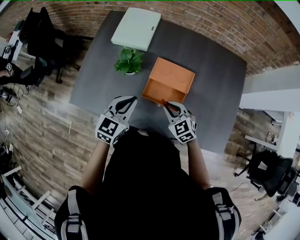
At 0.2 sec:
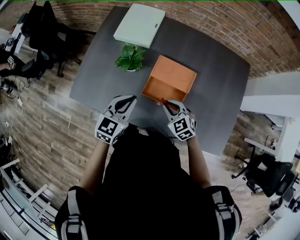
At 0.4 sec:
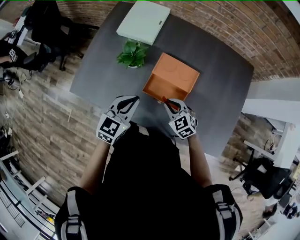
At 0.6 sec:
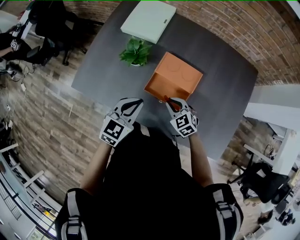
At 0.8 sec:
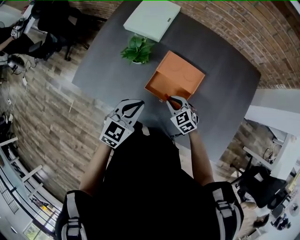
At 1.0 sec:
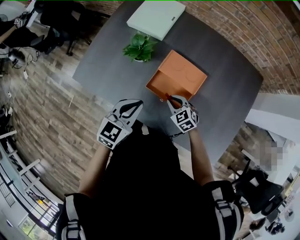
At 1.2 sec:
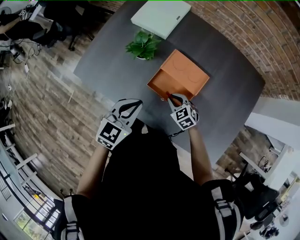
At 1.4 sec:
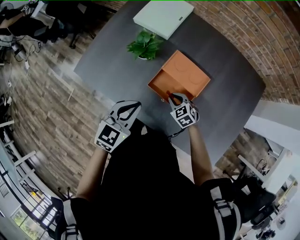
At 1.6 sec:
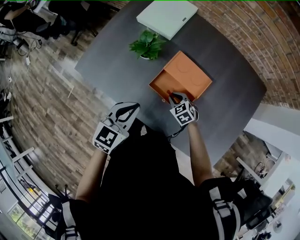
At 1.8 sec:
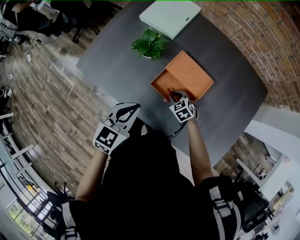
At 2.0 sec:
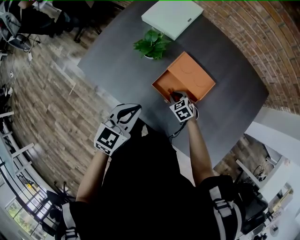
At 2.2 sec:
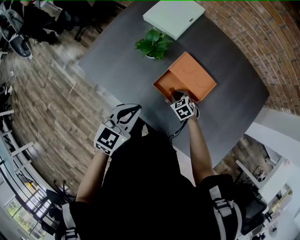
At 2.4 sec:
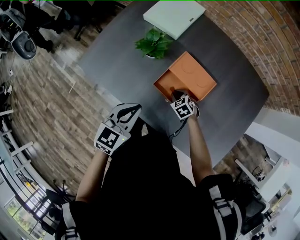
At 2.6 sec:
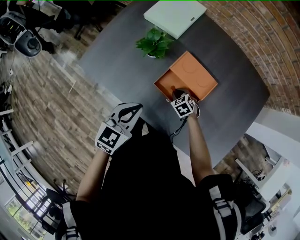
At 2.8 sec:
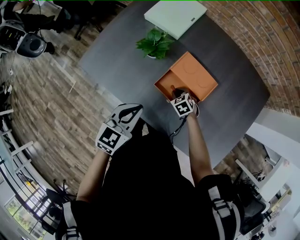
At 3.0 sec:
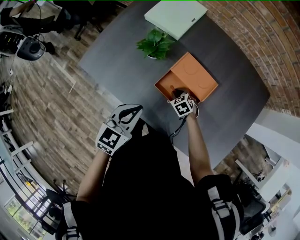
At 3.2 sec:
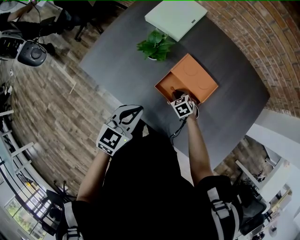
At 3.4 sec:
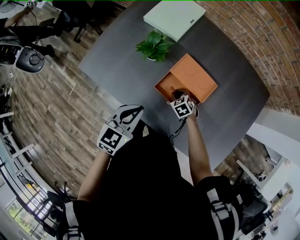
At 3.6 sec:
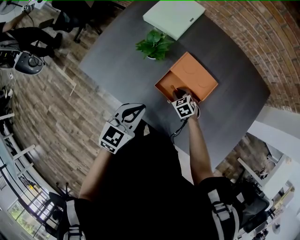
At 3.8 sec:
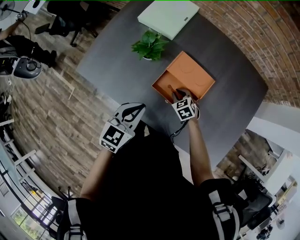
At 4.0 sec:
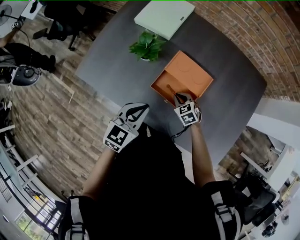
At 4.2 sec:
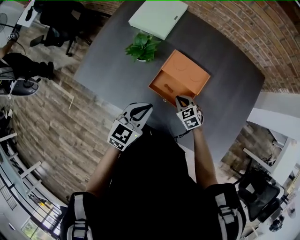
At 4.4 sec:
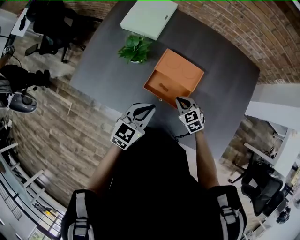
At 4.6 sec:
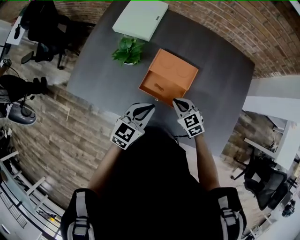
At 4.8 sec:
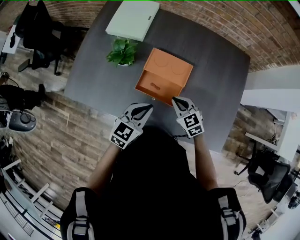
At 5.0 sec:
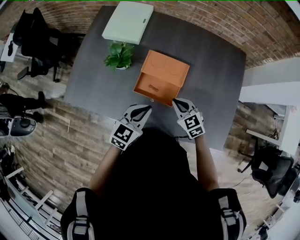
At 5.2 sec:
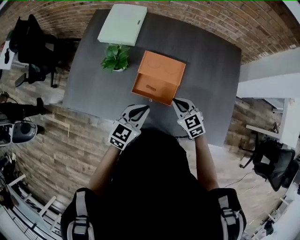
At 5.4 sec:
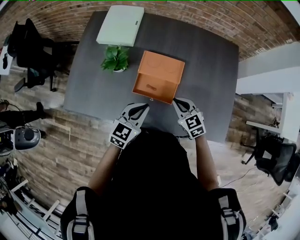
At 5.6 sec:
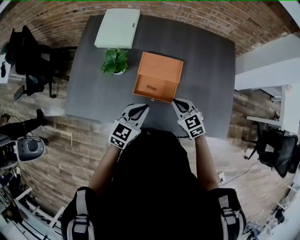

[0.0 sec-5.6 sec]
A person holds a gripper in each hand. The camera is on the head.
0.0 sec to 1.4 sec: The left gripper shifts by roughly 5 cm. Meanwhile the right gripper is displaced downward by some 15 cm, and swivels approximately 20 degrees.
1.4 sec to 2.8 sec: The right gripper heads downward, covering about 5 cm.
2.8 sec to 4.2 sec: The left gripper changes place by about 5 cm. The right gripper travels upward by some 5 cm.
4.2 sec to 5.6 sec: The right gripper shifts some 15 cm upward and backward, and swivels roughly 20 degrees.

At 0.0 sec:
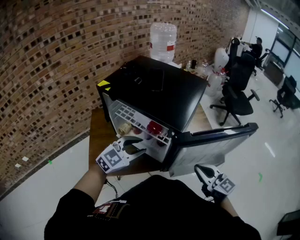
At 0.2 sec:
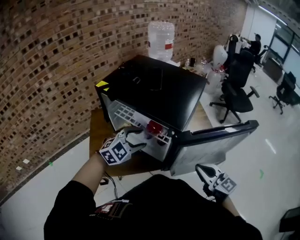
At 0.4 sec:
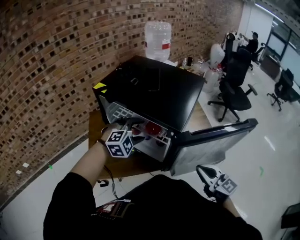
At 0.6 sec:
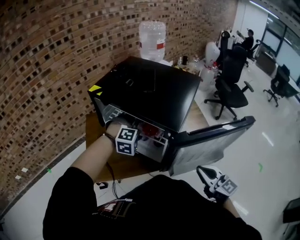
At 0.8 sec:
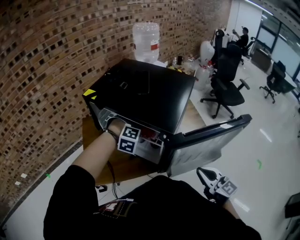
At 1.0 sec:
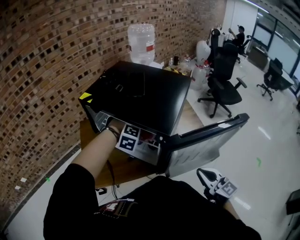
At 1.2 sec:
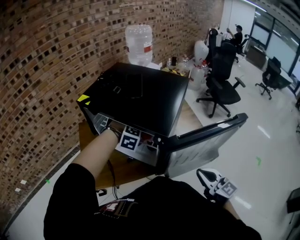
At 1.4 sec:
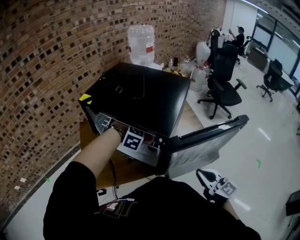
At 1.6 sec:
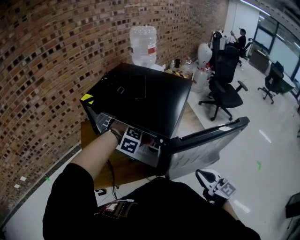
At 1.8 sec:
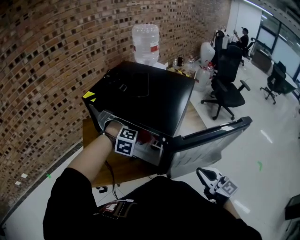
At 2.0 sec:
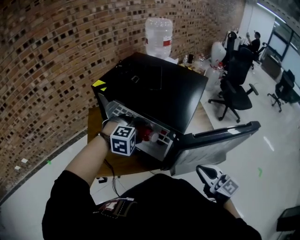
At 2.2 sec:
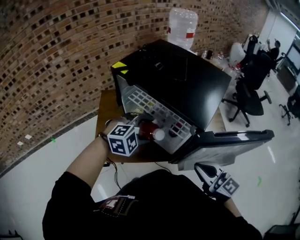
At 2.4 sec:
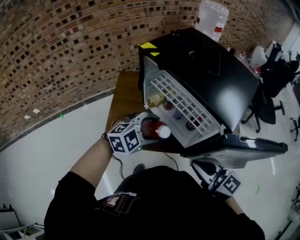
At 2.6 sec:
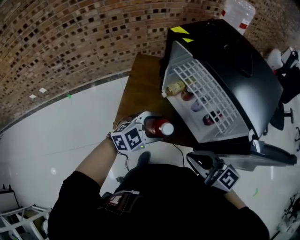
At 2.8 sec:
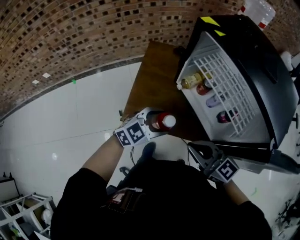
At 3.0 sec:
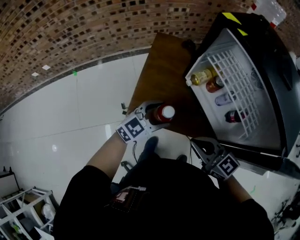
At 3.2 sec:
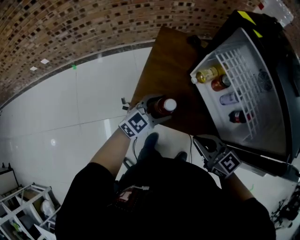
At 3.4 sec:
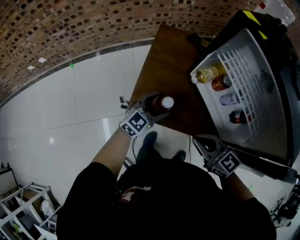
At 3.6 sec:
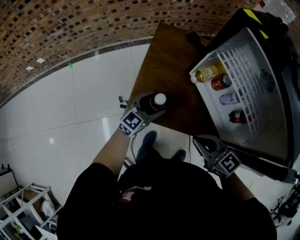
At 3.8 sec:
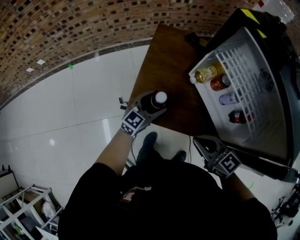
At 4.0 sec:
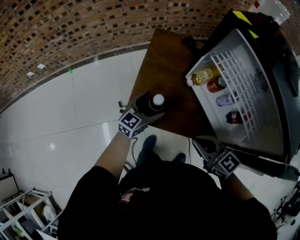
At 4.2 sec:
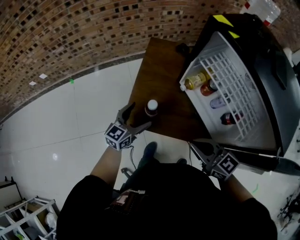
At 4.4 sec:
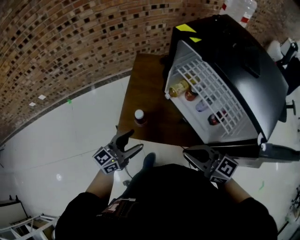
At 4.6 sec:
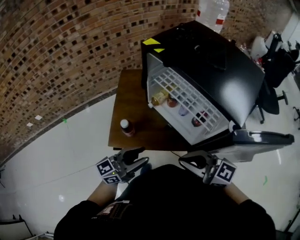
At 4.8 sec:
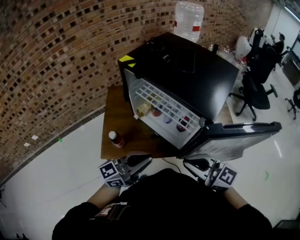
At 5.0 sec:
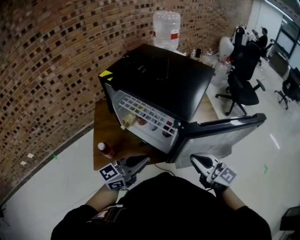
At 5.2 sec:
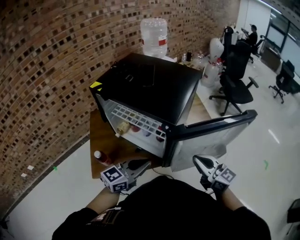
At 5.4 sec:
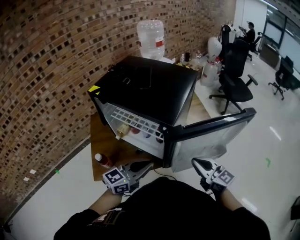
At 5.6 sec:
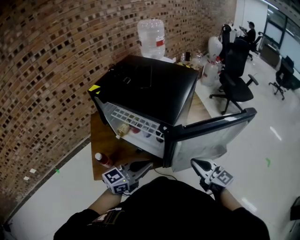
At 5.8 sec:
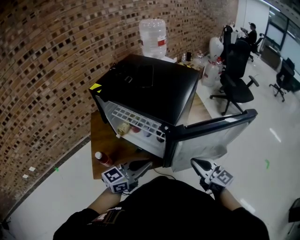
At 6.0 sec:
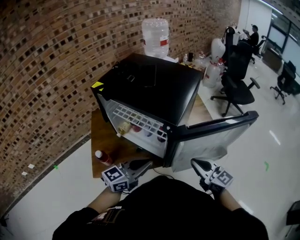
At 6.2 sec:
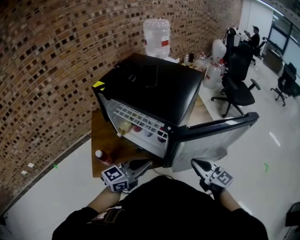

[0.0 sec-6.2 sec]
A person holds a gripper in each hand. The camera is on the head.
0.0 sec to 1.6 sec: The left gripper shifts about 15 cm forward and downward, tilts its fingers approximately 50 degrees downward, and opens up.
1.6 sec to 3.2 sec: Both grippers move to the left and downward, roughly 40 cm. The right gripper rotates about 50 degrees, while the left gripper rotates around the line of its fingers by approximately 80 degrees, counterclockwise from behind.
3.2 sec to 4.6 sec: The right gripper shifts about 25 cm upward, to the right and backward. Meanwhile the left gripper goes roughly 25 cm upward, backward and to the right, and rotates about 40 degrees.
4.6 sec to 6.2 sec: The left gripper moves about 20 cm, and closes its fingers; the right gripper changes place by approximately 25 cm, and swivels roughly 40 degrees.

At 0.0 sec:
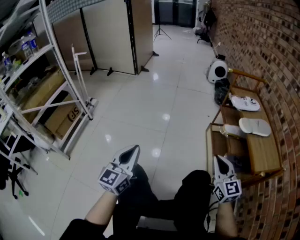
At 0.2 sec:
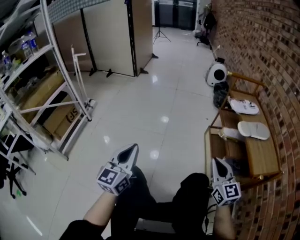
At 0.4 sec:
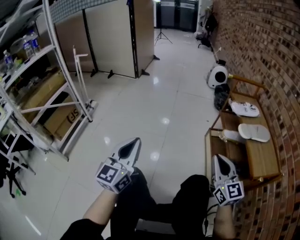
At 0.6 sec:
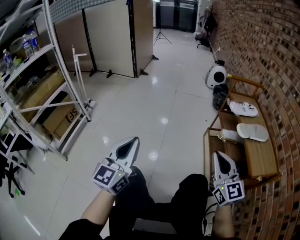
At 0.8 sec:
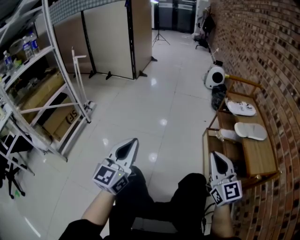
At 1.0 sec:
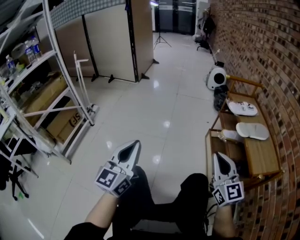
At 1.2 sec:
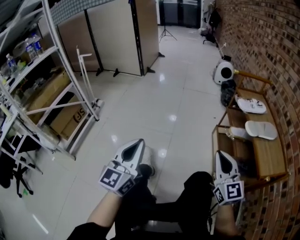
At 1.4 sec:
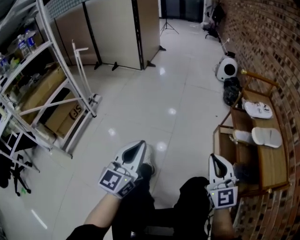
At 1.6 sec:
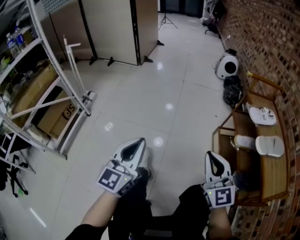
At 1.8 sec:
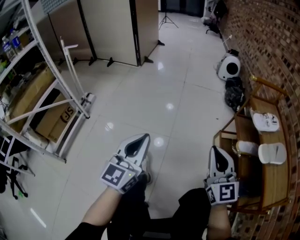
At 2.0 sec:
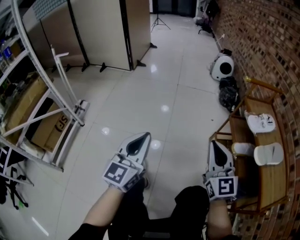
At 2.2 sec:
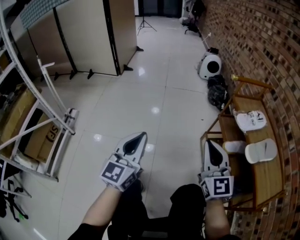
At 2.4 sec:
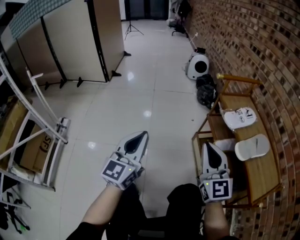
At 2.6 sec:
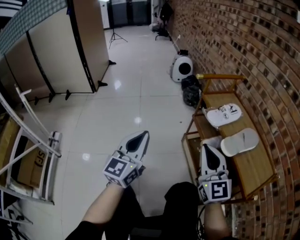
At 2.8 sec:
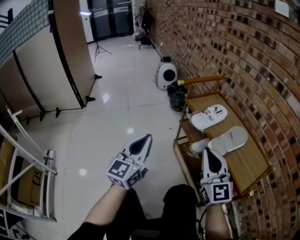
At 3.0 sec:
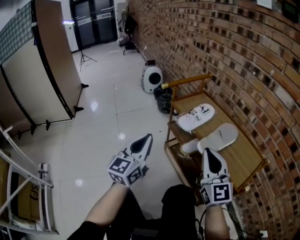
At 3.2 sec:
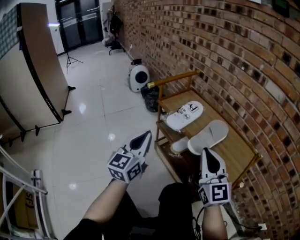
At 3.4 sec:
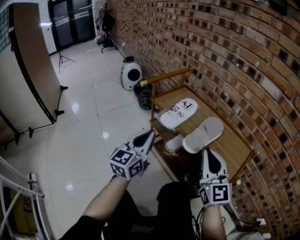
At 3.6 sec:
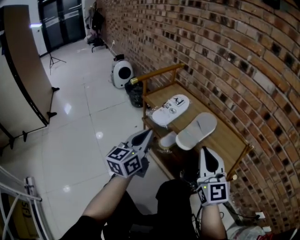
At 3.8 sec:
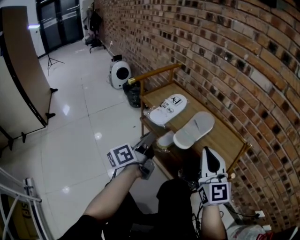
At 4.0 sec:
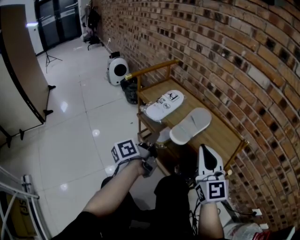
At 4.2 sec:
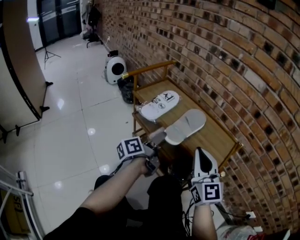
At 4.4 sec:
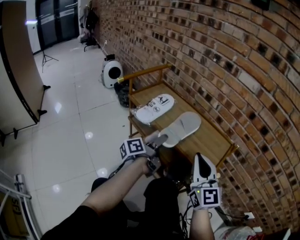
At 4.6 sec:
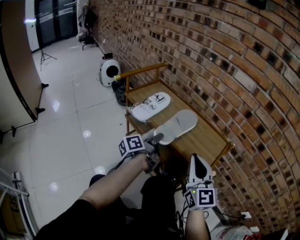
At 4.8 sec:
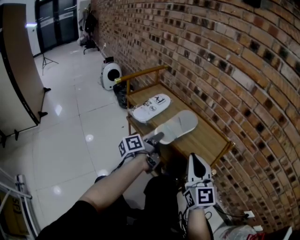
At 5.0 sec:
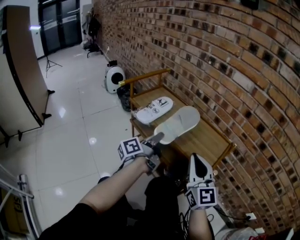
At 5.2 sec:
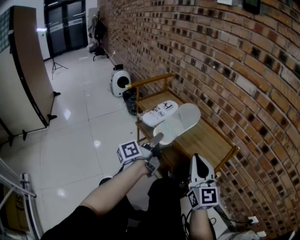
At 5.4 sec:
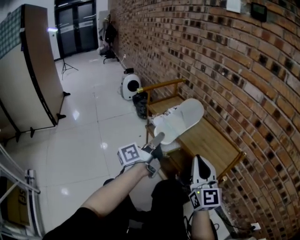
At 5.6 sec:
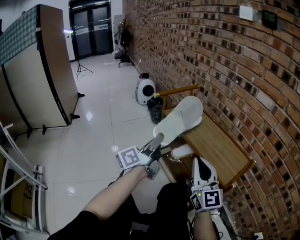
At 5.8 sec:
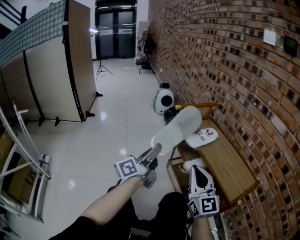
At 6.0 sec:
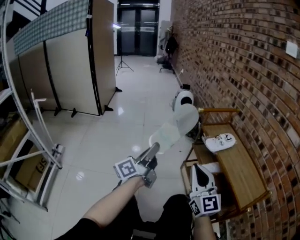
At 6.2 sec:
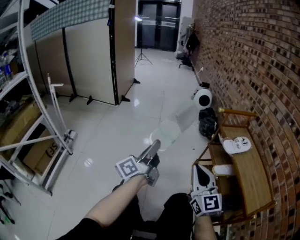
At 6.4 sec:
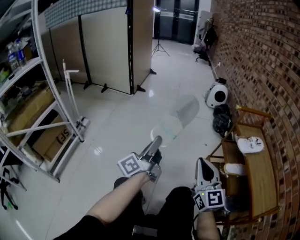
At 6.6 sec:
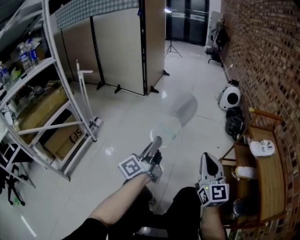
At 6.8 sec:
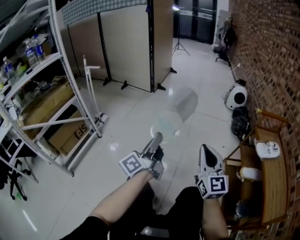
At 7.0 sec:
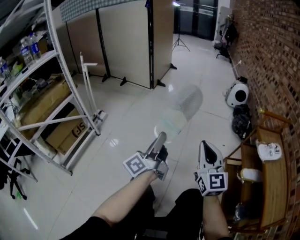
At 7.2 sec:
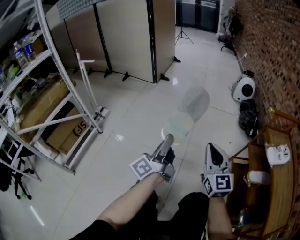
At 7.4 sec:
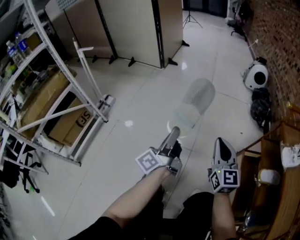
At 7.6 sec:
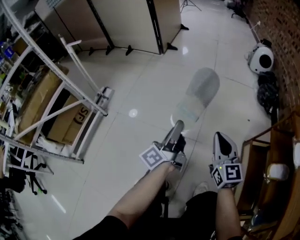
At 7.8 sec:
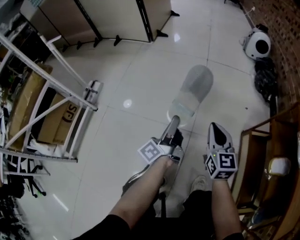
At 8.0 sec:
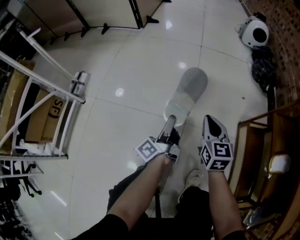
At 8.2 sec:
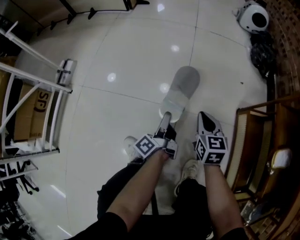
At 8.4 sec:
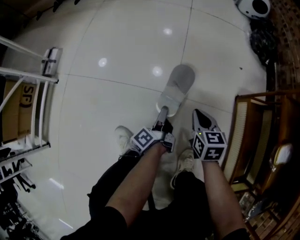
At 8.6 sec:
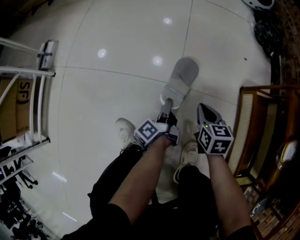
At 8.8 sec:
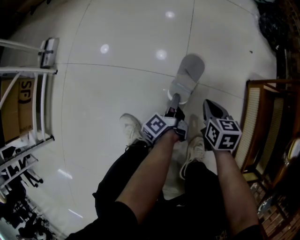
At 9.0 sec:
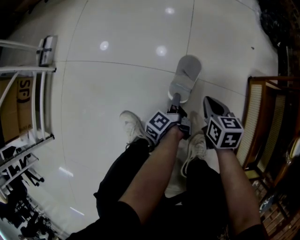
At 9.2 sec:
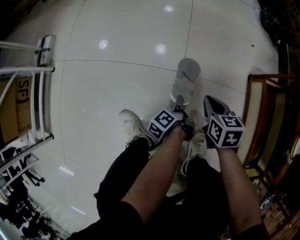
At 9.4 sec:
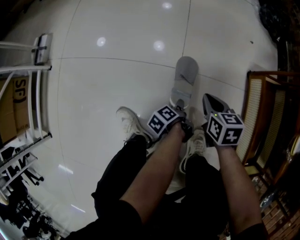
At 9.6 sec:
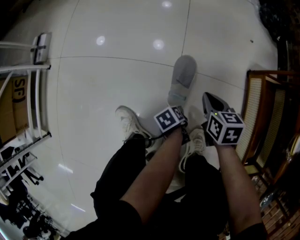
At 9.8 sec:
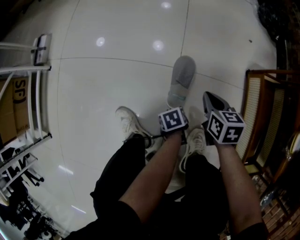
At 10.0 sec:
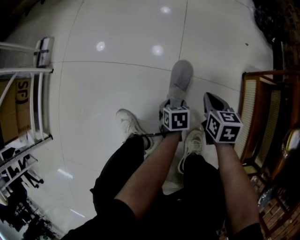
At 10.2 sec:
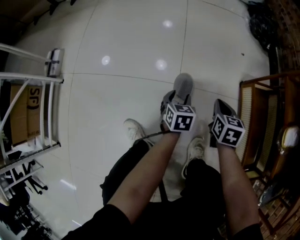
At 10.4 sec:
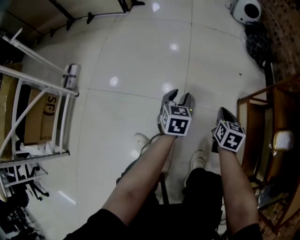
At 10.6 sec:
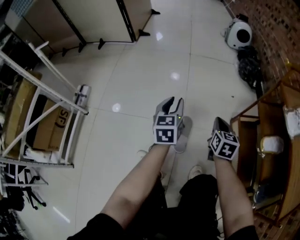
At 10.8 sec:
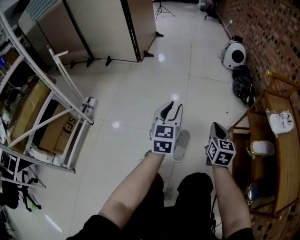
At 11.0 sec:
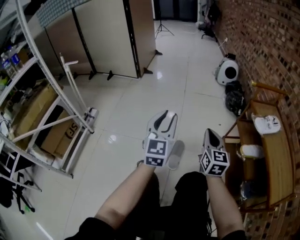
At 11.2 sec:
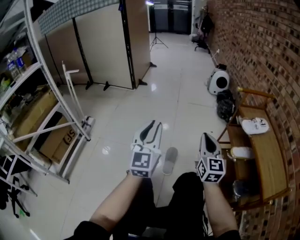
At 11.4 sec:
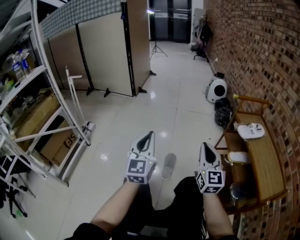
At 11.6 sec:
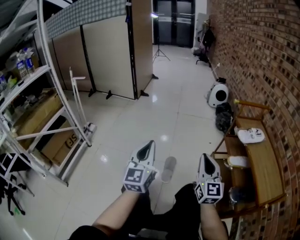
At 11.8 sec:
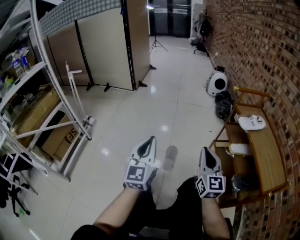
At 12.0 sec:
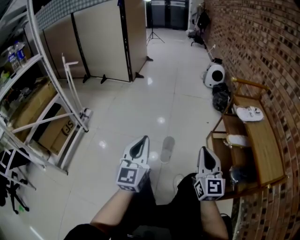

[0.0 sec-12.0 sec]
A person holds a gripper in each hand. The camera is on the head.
0.0 sec to 1.6 sec: The left gripper travels forward by approximately 10 cm. The right gripper moves to the left and forward, about 15 cm.
1.6 sec to 3.0 sec: The right gripper ends up roughly 25 cm from where it was, and swivels approximately 40 degrees. Meanwhile the left gripper shifts by approximately 35 cm, and rotates some 30 degrees.
3.0 sec to 4.4 sec: The left gripper goes some 25 cm to the right, downward and forward, twists some 70 degrees counterclockwise, seen from behind, and opens up. The right gripper goes about 10 cm to the right.
4.4 sec to 6.0 sec: The right gripper moves some 25 cm, and rotates approximately 40 degrees; the left gripper changes place by roughly 40 cm, rotates roughly 50 degrees, and closes its fingers.
6.0 sec to 7.6 sec: The left gripper changes place by about 30 cm, and changes its angle by roughly 30 degrees. The right gripper shifts by approximately 35 cm, and changes its angle by roughly 30 degrees.
7.6 sec to 9.0 sec: Both grippers move downward, approximately 40 cm. The left gripper tips its fingers downward by some 40 degrees; the right gripper tilts its fingers roughly 40 degrees downward.
9.0 sec to 10.4 sec: The left gripper shifts some 20 cm upward, rotates around the line of its fingers by approximately 90 degrees, clockwise from behind, and opens its fingers. The right gripper goes about 10 cm upward, and turns by some 20 degrees.
10.4 sec to 12.0 sec: The two grippers go roughly 50 cm upward and backward. The left gripper points its fingers about 40 degrees further upward, and closes its fingers, while the right gripper tilts its fingers approximately 50 degrees upward.
